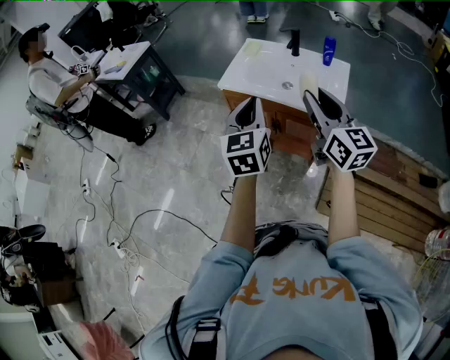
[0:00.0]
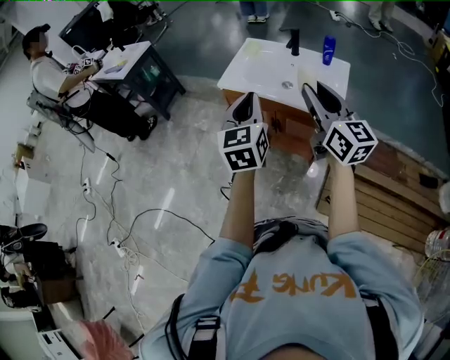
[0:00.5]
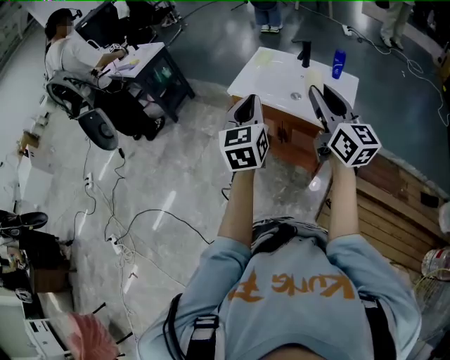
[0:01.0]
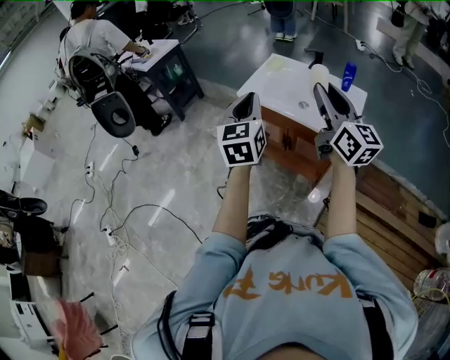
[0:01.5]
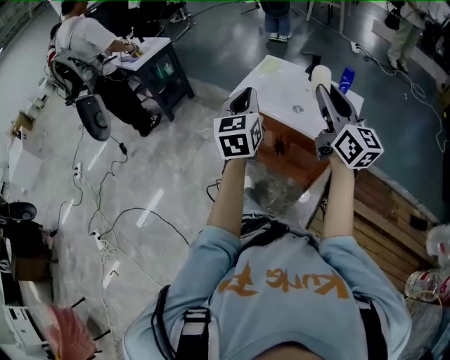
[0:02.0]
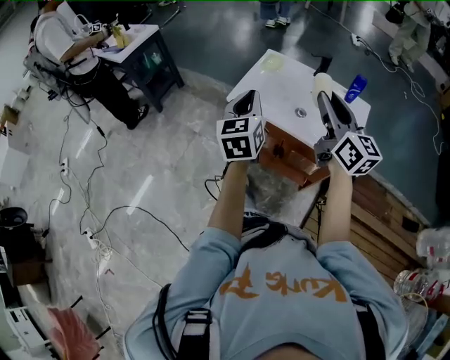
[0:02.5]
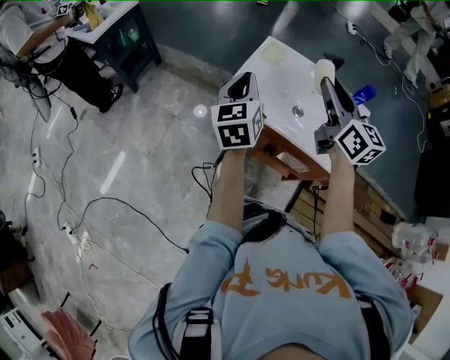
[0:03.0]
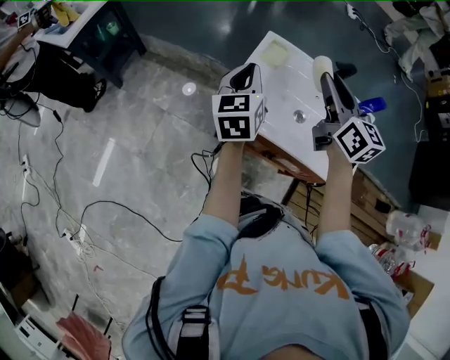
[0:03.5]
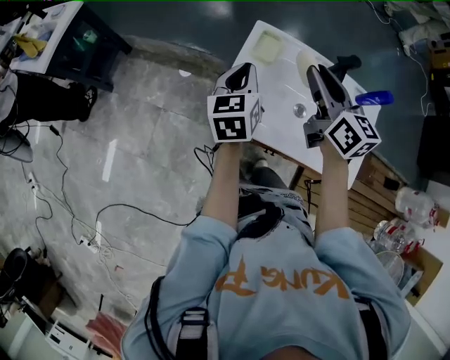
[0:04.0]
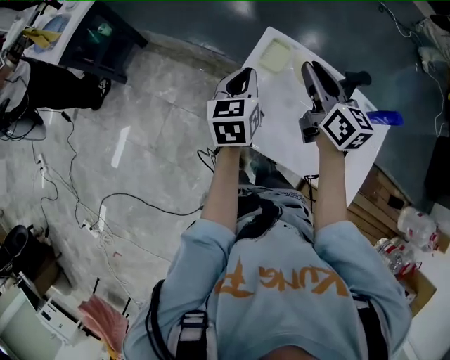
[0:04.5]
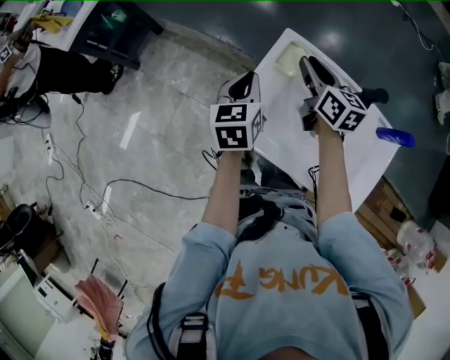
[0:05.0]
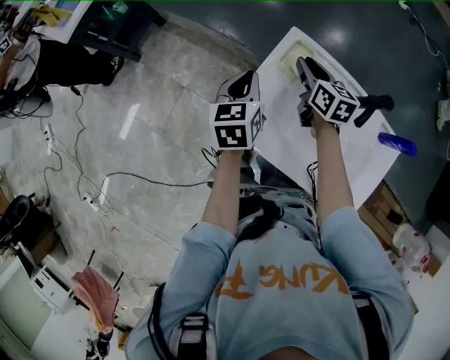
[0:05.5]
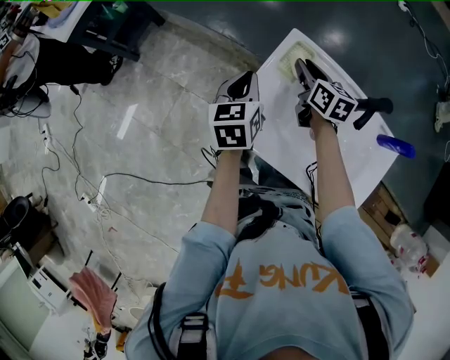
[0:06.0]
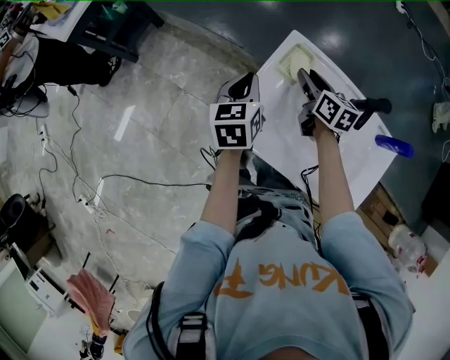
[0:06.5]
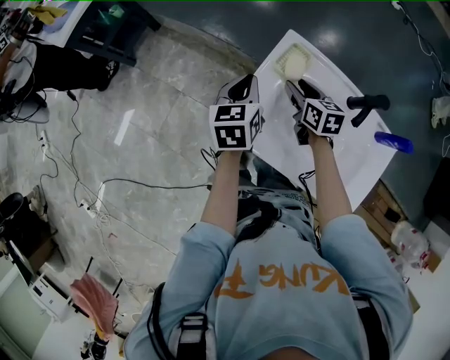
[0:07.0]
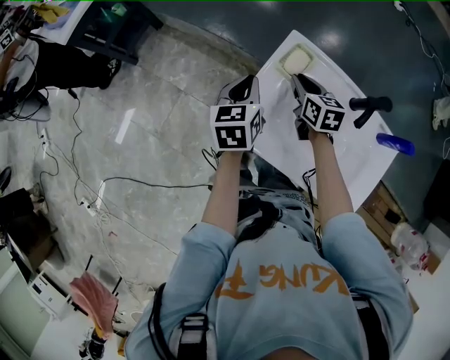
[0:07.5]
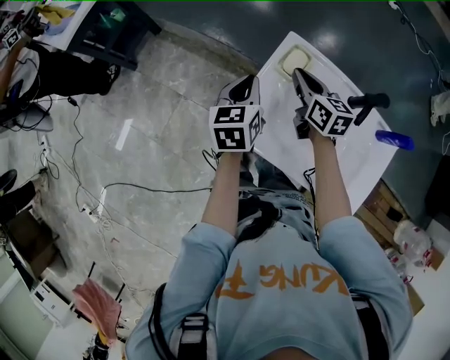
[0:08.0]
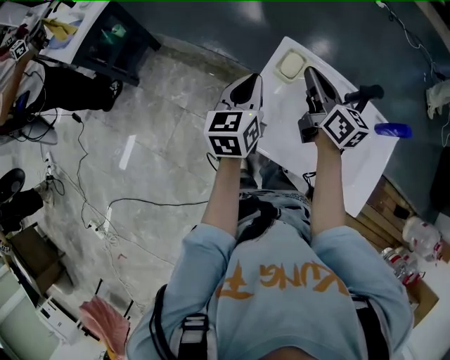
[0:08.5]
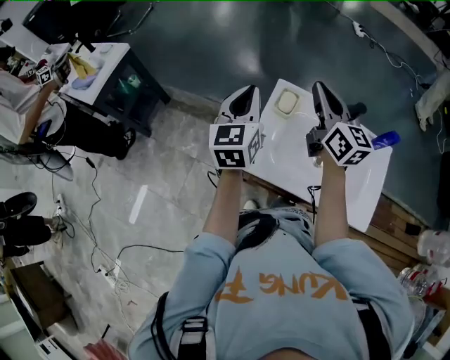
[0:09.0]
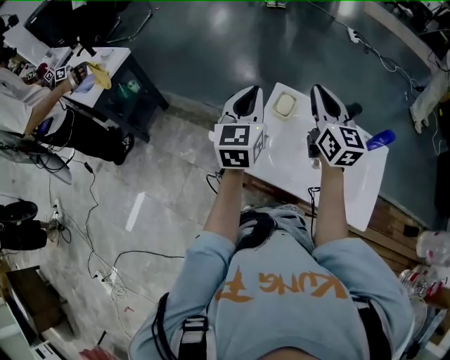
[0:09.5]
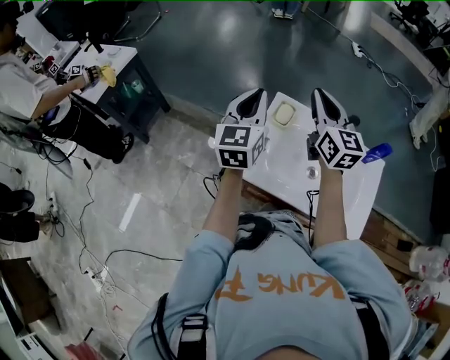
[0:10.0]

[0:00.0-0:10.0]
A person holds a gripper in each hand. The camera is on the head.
0:00.0 to 0:02.0: The two grippers go some 10 cm forward.
0:02.0 to 0:04.0: The two grippers travel together, forward, some 40 cm. The left gripper shifts roughly 20 cm downward, and changes its angle by roughly 30 degrees. The right gripper turns by roughly 30 degrees.
0:04.0 to 0:06.0: The right gripper moves downward and forward, some 25 cm, and turns by roughly 20 degrees. Meanwhile the left gripper travels downward and forward by approximately 10 cm.
0:06.0 to 0:08.0: The right gripper ends up about 5 cm from where it was.
0:08.0 to 0:10.0: The grippers both shift upward by approximately 20 cm. The left gripper turns by some 30 degrees. The right gripper changes its angle by some 40 degrees.

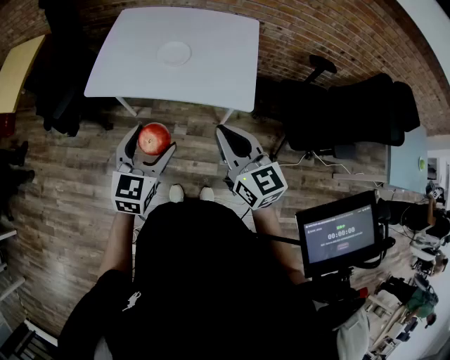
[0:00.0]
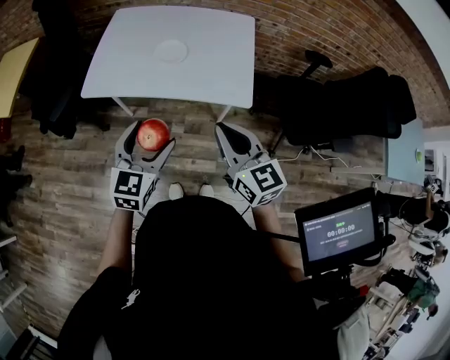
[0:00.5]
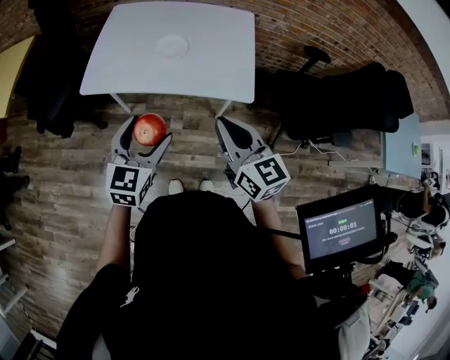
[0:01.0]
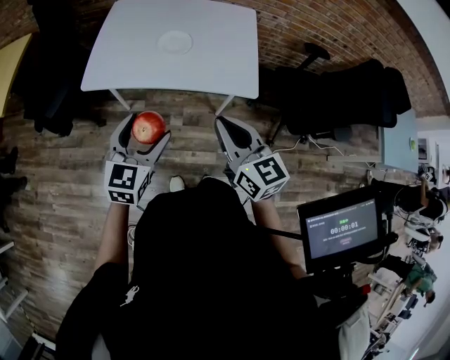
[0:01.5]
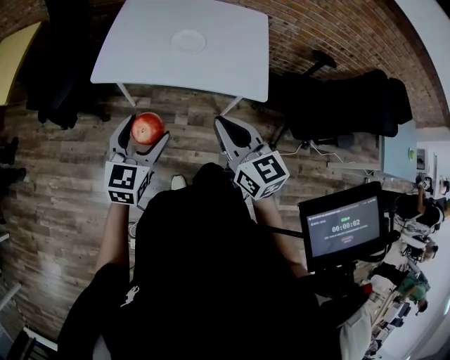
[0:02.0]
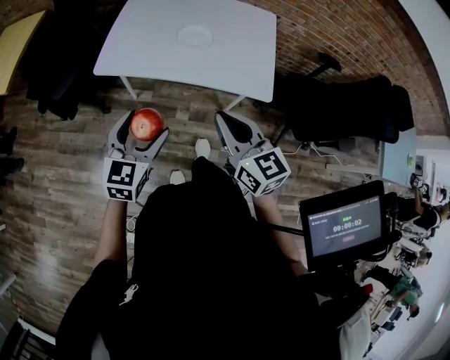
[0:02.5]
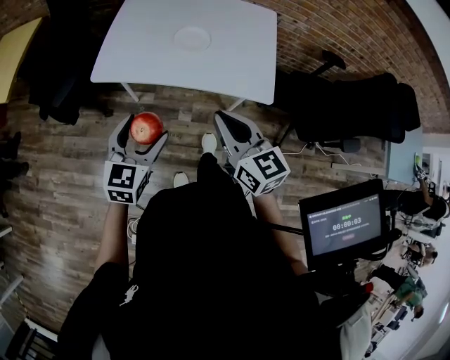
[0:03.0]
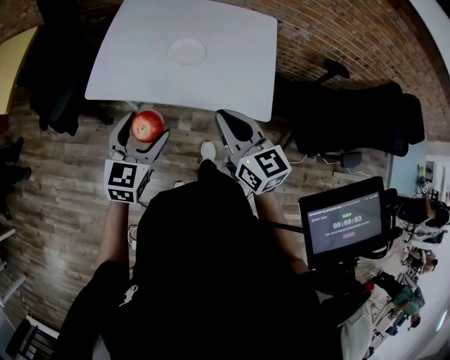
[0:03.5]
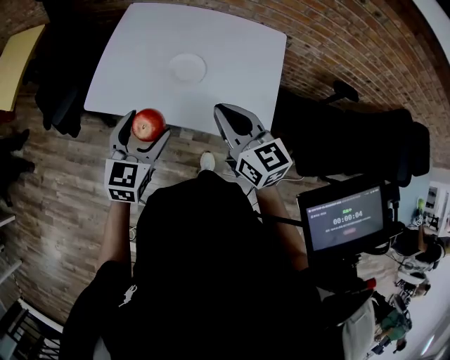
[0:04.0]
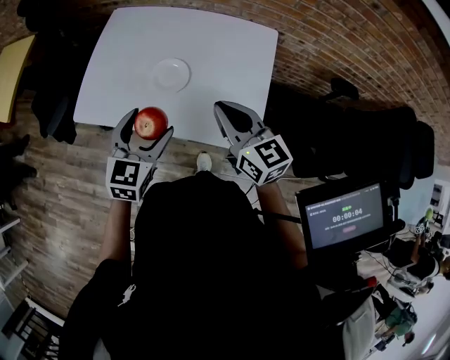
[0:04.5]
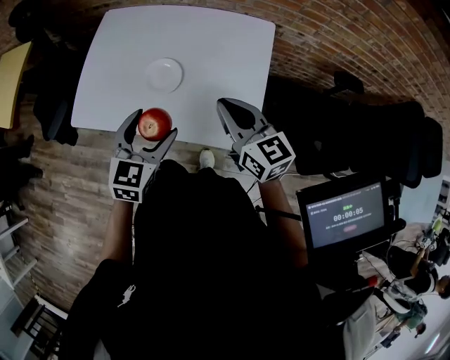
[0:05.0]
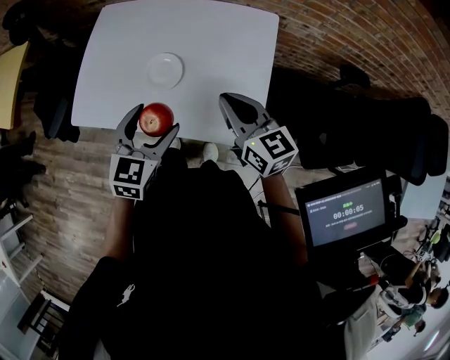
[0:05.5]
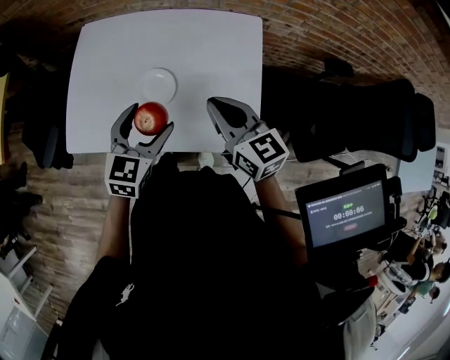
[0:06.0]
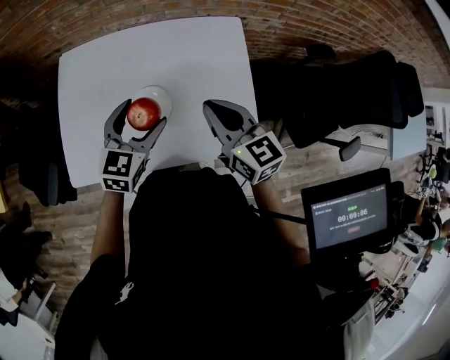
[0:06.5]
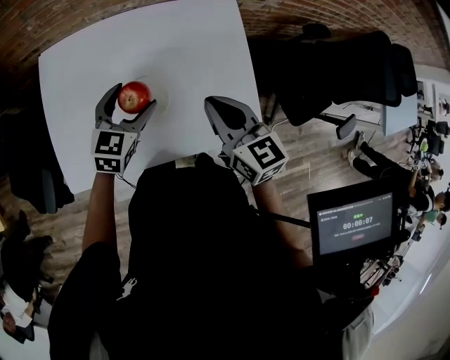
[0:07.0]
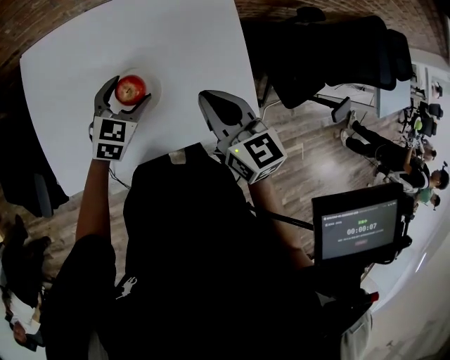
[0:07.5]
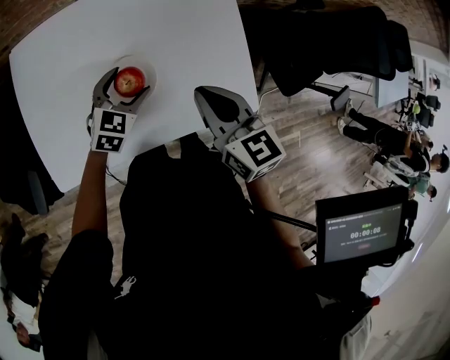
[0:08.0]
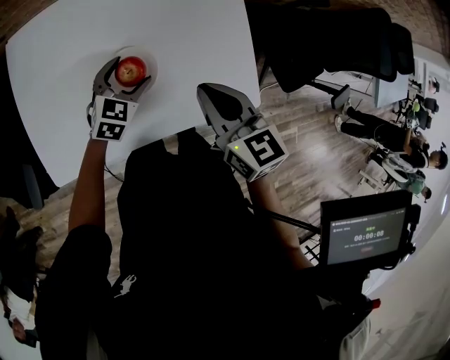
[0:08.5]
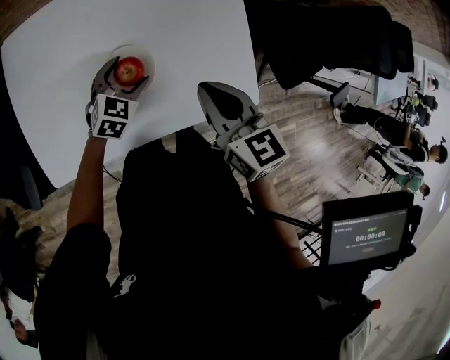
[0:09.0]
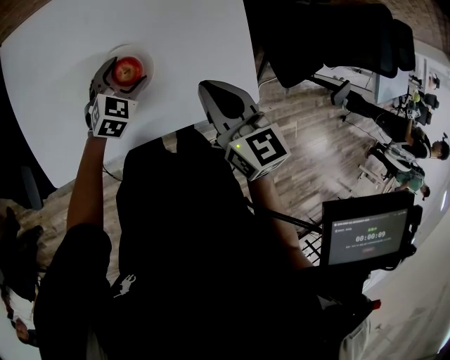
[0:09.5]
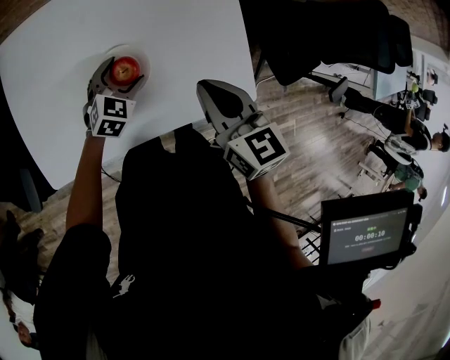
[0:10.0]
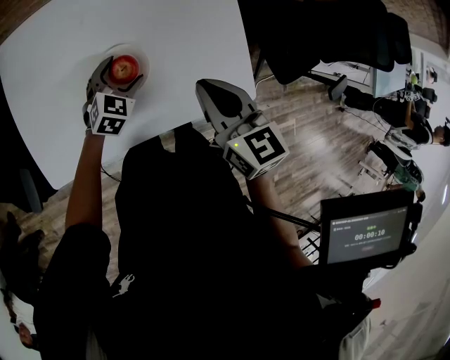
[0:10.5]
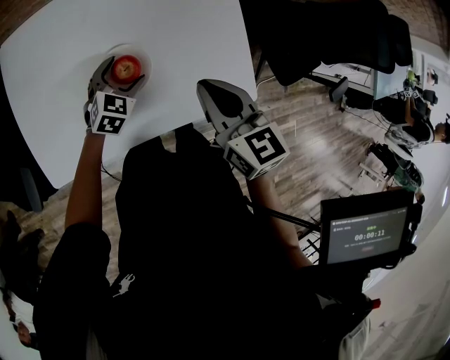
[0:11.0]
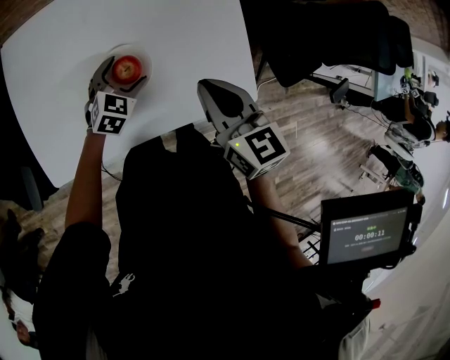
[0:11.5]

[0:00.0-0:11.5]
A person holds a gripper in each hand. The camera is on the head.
0:00.0 to 0:02.0: Both grippers travel together to the left, about 10 cm.
0:02.0 to 0:04.0: The left gripper travels forward and to the right by approximately 20 cm; the right gripper goes some 20 cm forward.
0:04.0 to 0:06.0: The grippers both shift forward and to the right by approximately 15 cm.
0:06.0 to 0:07.5: The right gripper shifts by approximately 5 cm, and swivels about 20 degrees. Meanwhile the left gripper travels downward and forward by about 15 cm, and changes its angle by some 20 degrees.
0:07.5 to 0:09.5: The left gripper is displaced downward by approximately 5 cm.
0:09.5 to 0:11.5: The grippers move only a little.

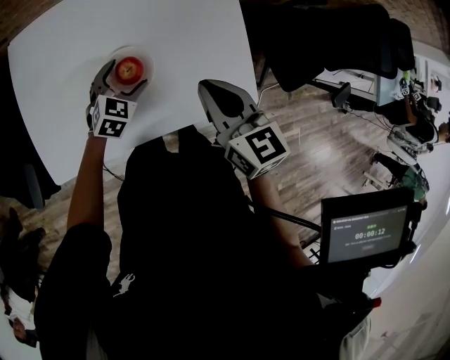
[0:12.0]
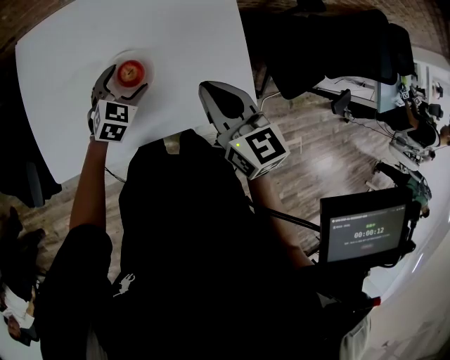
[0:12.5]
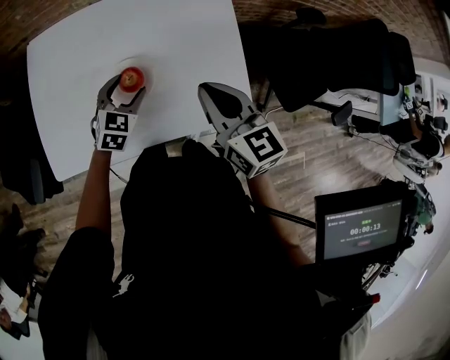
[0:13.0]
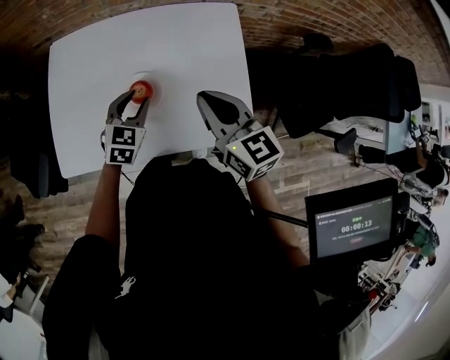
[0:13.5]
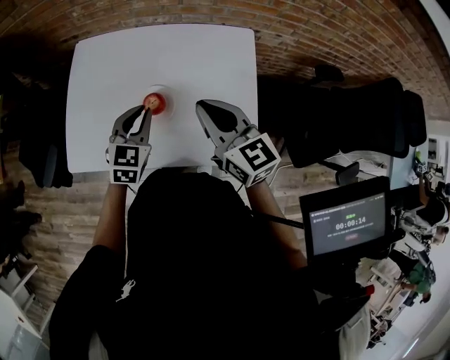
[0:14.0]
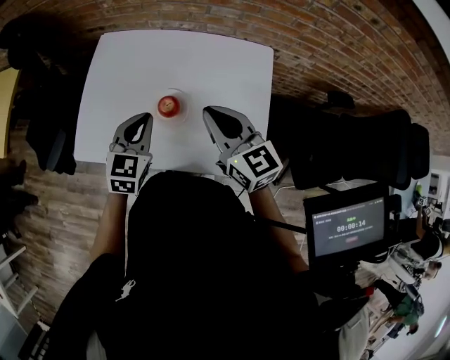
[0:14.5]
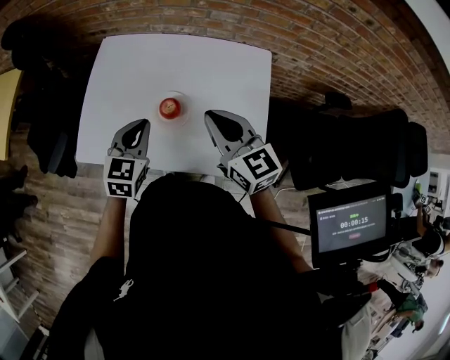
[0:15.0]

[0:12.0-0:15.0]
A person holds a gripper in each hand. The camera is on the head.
0:12.0 to 0:13.5: The left gripper moves upward, some 10 cm, and closes.
0:13.5 to 0:15.0: The left gripper heads upward and to the left, covering roughly 10 cm, and closes its fingers. The right gripper ends up some 5 cm from where it was.

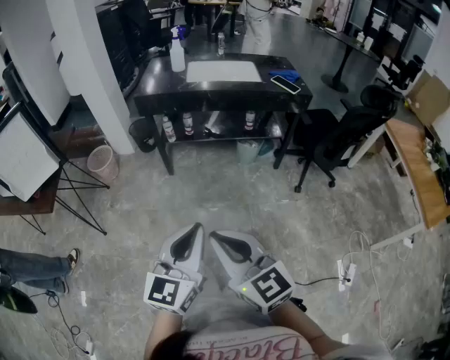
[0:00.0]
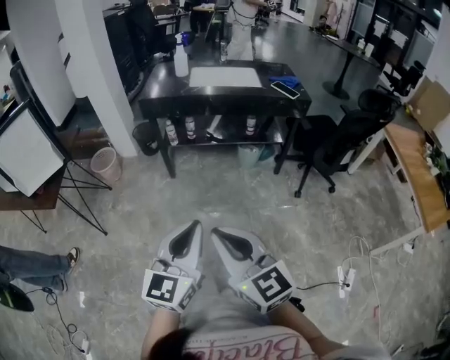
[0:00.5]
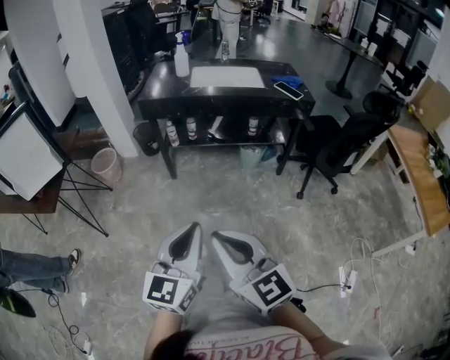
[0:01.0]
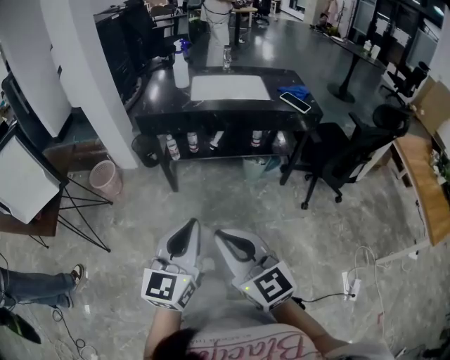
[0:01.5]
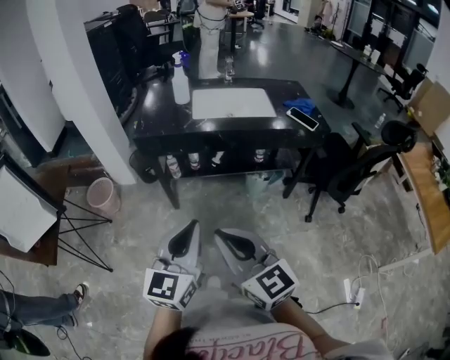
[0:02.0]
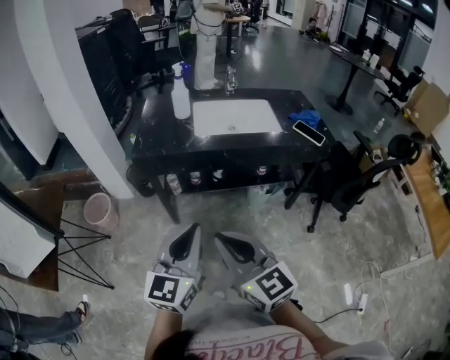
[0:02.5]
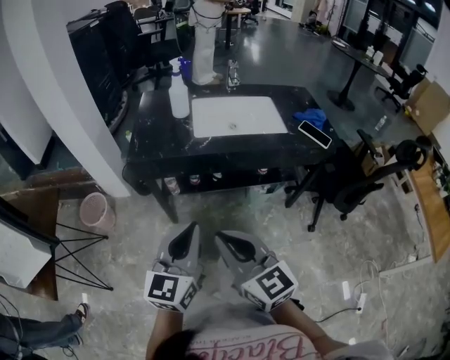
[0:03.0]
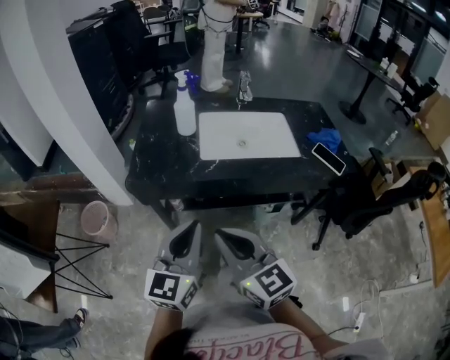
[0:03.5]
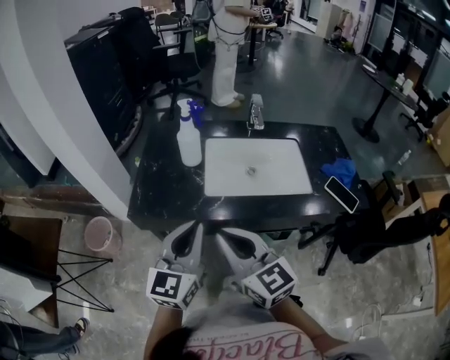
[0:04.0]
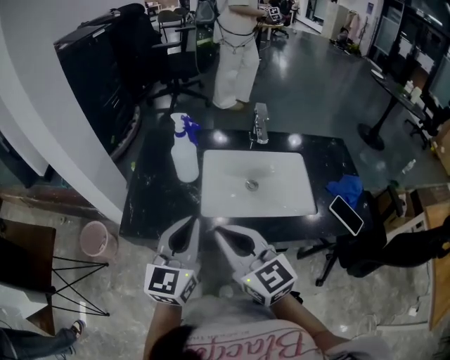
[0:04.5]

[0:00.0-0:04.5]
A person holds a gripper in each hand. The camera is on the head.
0:00.0 to 0:02.0: Both grippers move forward, approximately 20 cm.
0:02.0 to 0:04.5: Both grippers are carried forward, approximately 40 cm.
